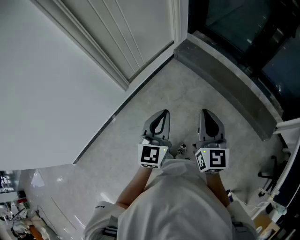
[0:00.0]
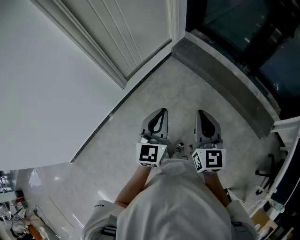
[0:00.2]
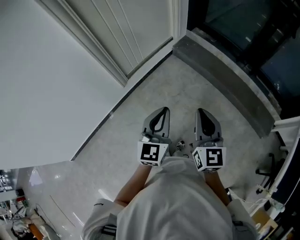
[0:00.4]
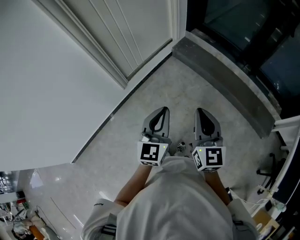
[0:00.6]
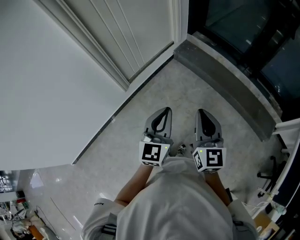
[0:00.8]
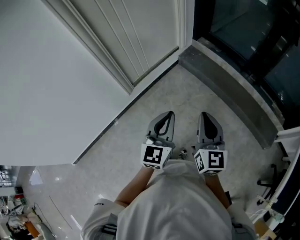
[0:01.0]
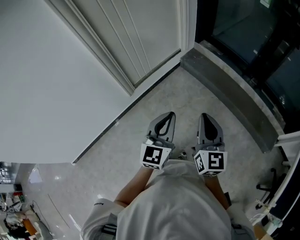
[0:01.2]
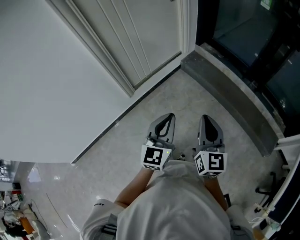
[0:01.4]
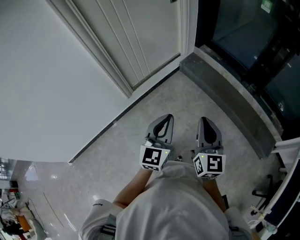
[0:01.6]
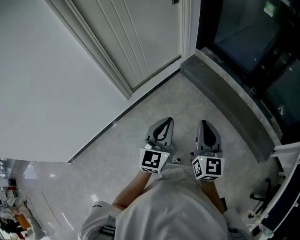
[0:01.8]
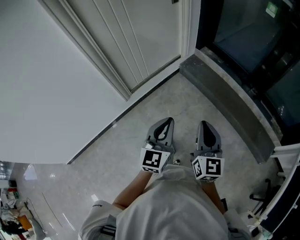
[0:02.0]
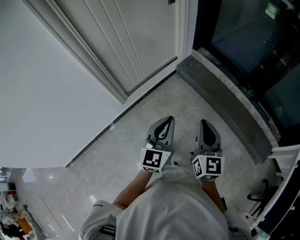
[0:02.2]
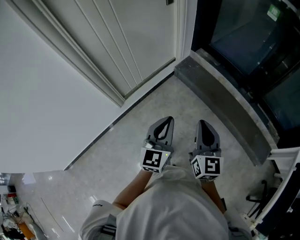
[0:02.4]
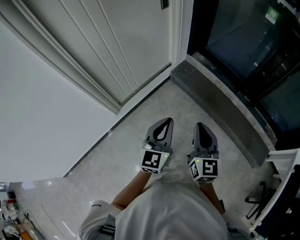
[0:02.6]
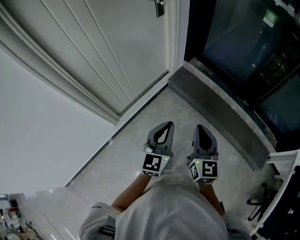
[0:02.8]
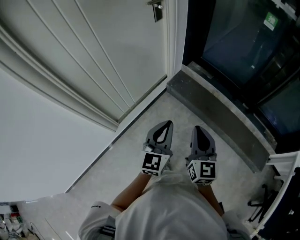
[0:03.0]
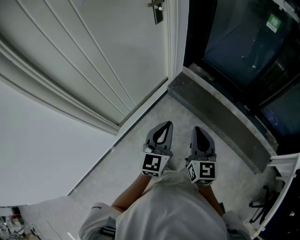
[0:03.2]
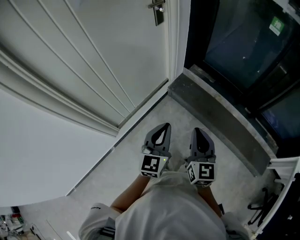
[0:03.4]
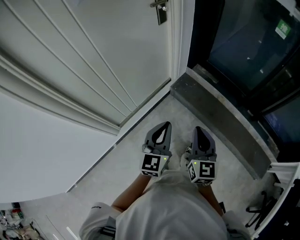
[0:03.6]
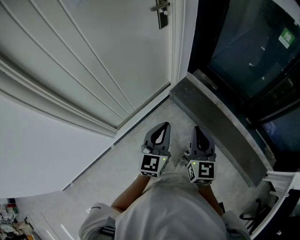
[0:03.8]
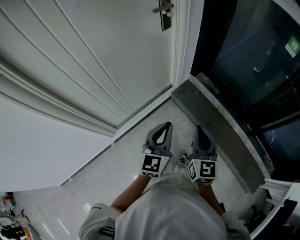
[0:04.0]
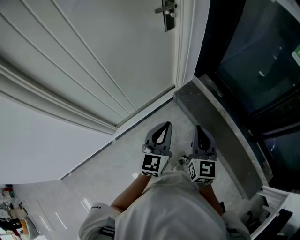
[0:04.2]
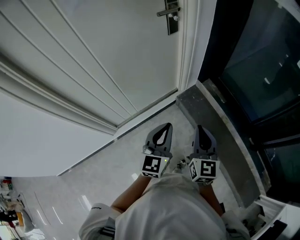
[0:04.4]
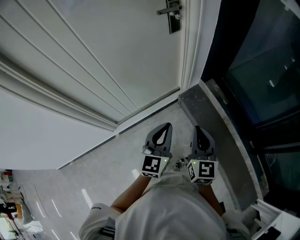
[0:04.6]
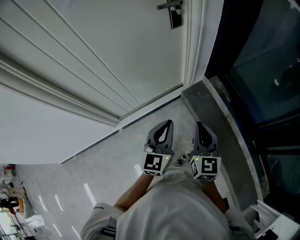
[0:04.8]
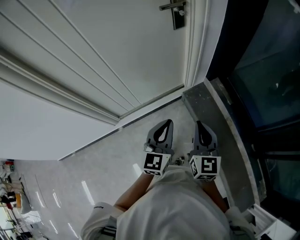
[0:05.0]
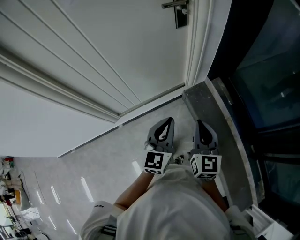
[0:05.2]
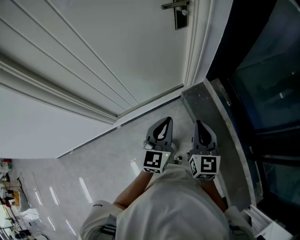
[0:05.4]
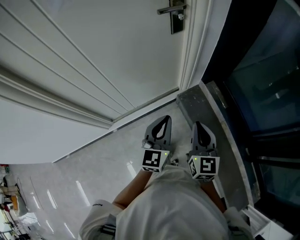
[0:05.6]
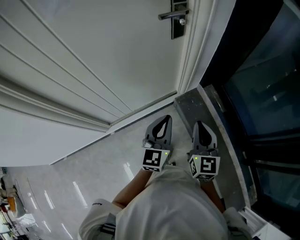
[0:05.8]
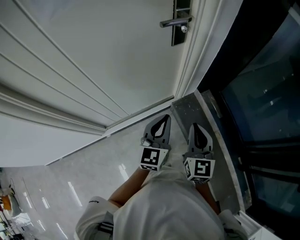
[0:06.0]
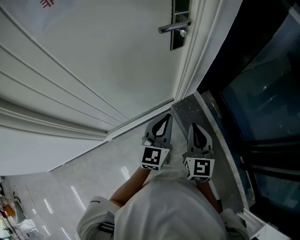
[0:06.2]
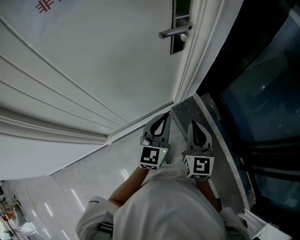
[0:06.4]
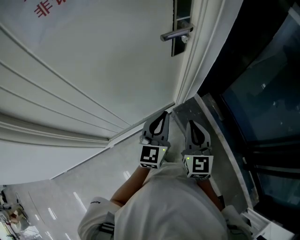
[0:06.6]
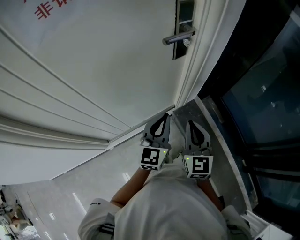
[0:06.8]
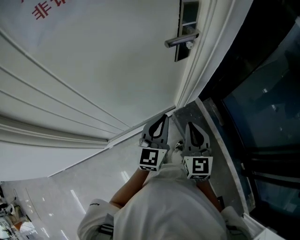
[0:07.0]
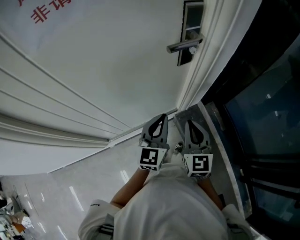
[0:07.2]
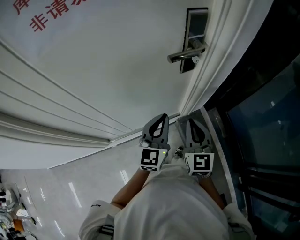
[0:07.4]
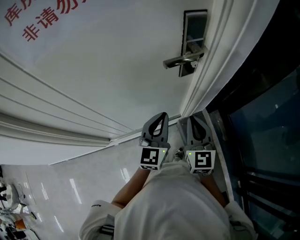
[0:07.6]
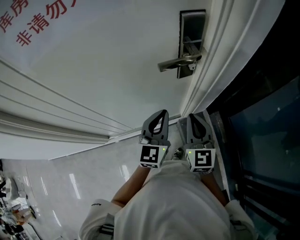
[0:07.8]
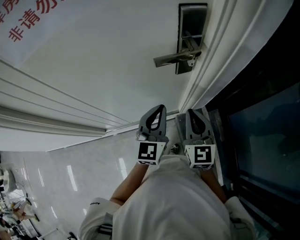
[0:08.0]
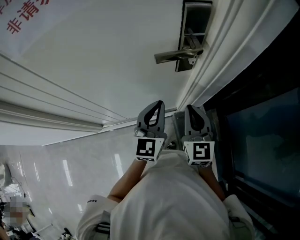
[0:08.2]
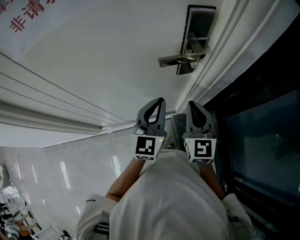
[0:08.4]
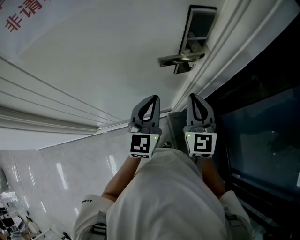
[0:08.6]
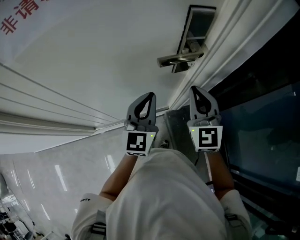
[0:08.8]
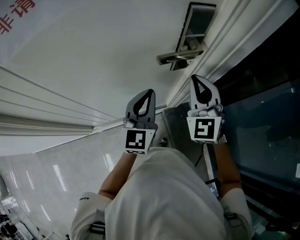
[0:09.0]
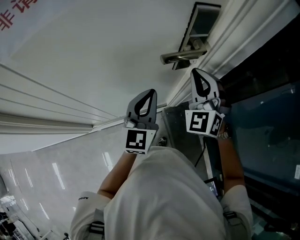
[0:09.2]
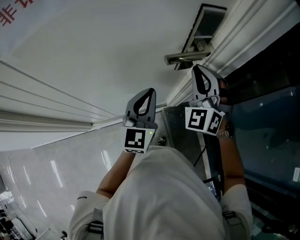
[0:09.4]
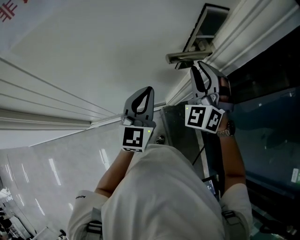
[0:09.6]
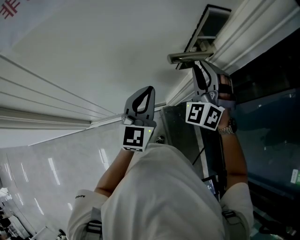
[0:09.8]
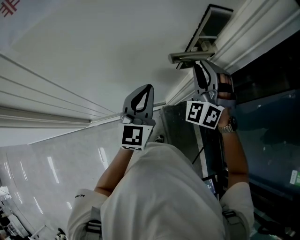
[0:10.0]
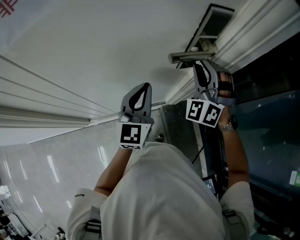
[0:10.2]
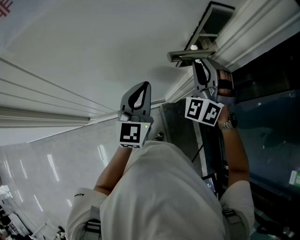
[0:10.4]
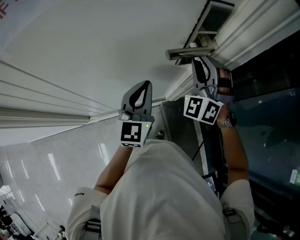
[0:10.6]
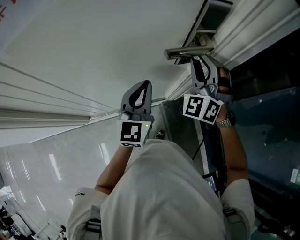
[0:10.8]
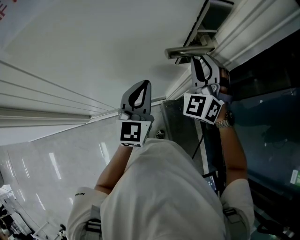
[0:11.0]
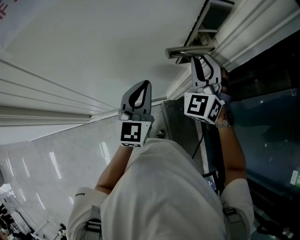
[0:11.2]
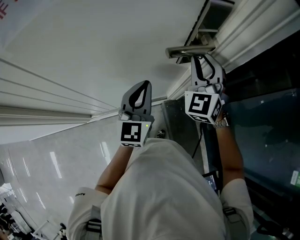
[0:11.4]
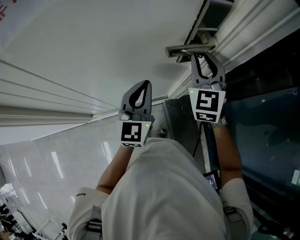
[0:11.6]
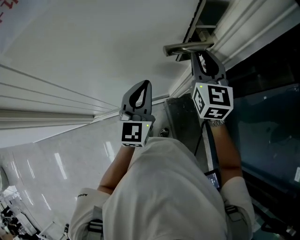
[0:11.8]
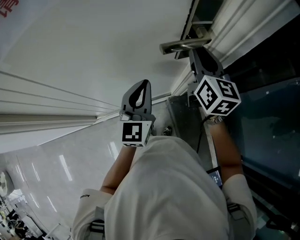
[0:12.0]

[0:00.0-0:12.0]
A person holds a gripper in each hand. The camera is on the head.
0:00.0 to 0:01.6: The grippers make only small movements.
0:01.6 to 0:03.0: Both grippers travel together forward, roughly 30 cm.
0:03.0 to 0:04.4: Both grippers travel together forward, some 20 cm.
0:04.4 to 0:06.0: The two grippers go about 15 cm forward.
0:06.0 to 0:07.6: Both grippers travel together forward, roughly 20 cm.
0:07.6 to 0:09.0: The right gripper moves forward and upward, approximately 15 cm, and changes its angle by approximately 30 degrees, while the left gripper travels forward by roughly 5 cm.
0:09.0 to 0:10.4: The right gripper goes roughly 5 cm forward, turns by some 40 degrees, and opens.
0:10.4 to 0:12.0: The right gripper rotates around the line of its fingers by about 90 degrees, clockwise from behind.

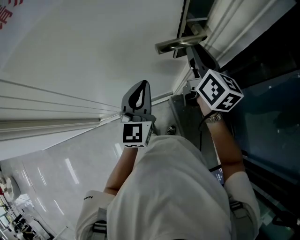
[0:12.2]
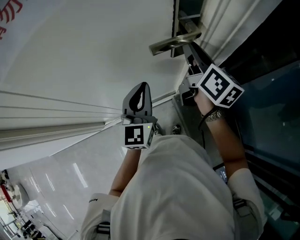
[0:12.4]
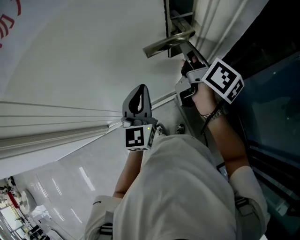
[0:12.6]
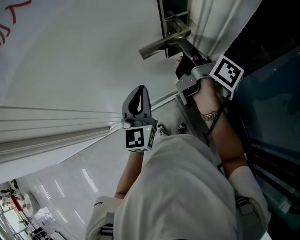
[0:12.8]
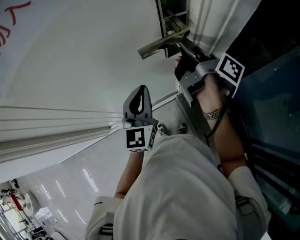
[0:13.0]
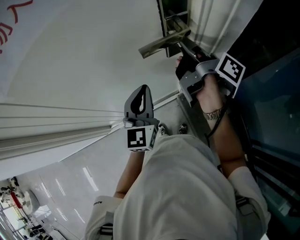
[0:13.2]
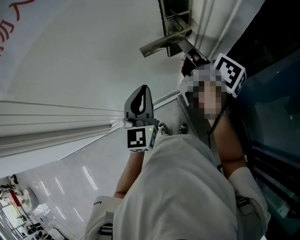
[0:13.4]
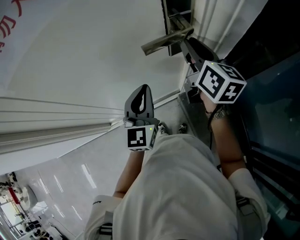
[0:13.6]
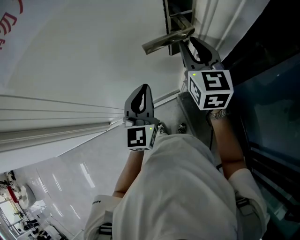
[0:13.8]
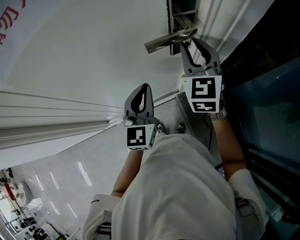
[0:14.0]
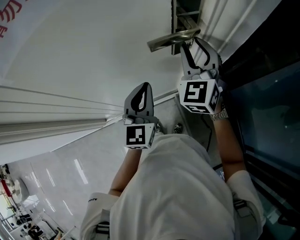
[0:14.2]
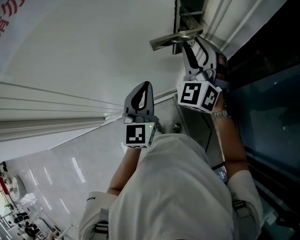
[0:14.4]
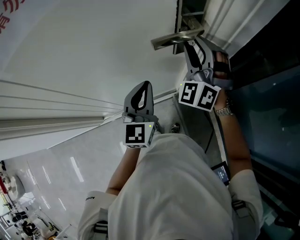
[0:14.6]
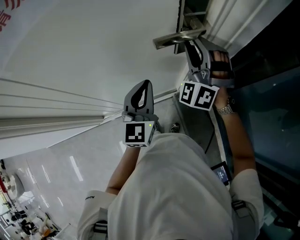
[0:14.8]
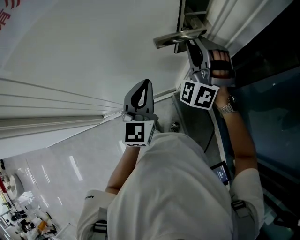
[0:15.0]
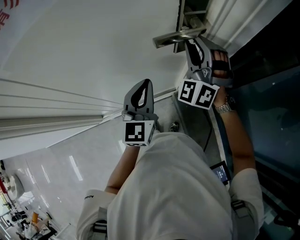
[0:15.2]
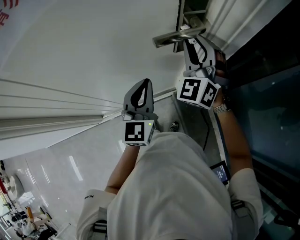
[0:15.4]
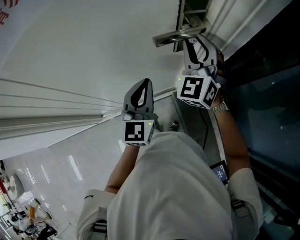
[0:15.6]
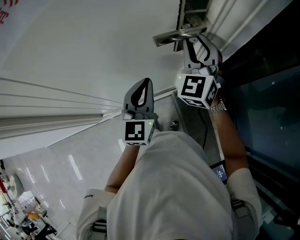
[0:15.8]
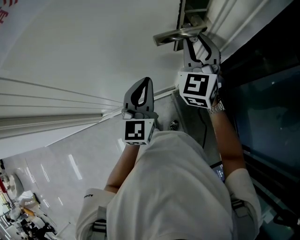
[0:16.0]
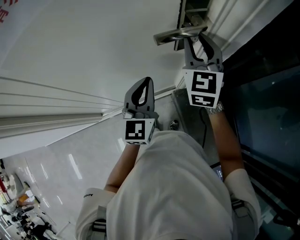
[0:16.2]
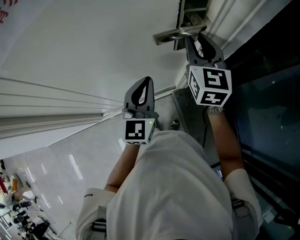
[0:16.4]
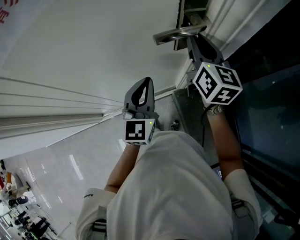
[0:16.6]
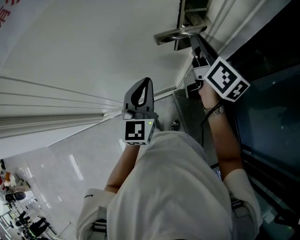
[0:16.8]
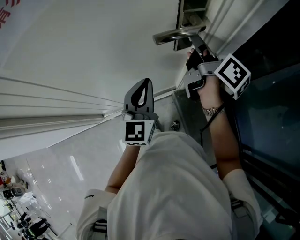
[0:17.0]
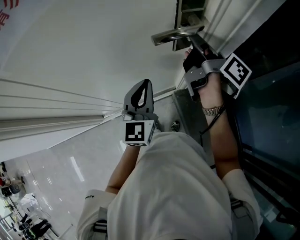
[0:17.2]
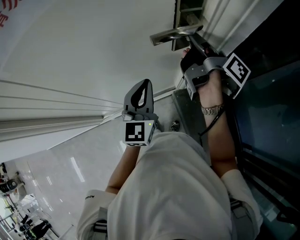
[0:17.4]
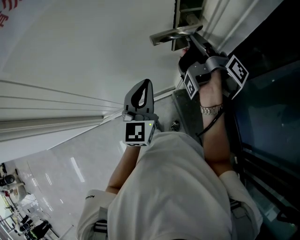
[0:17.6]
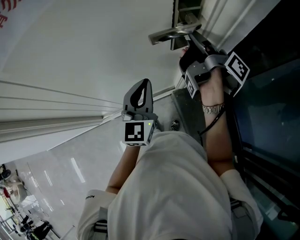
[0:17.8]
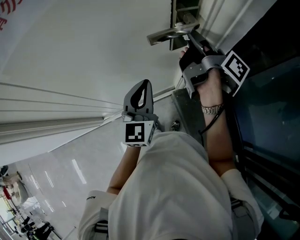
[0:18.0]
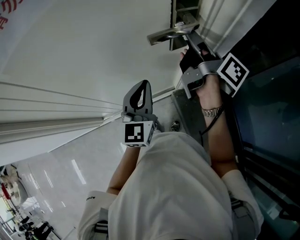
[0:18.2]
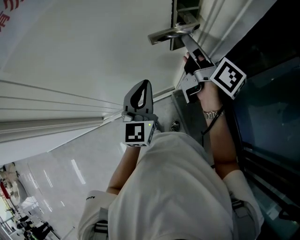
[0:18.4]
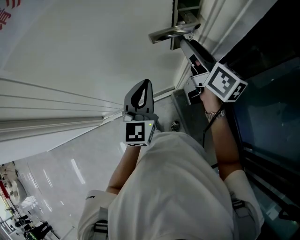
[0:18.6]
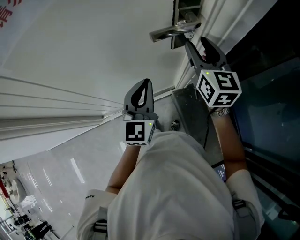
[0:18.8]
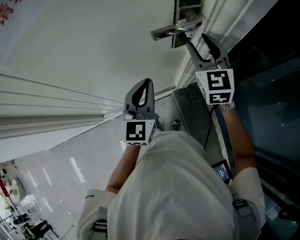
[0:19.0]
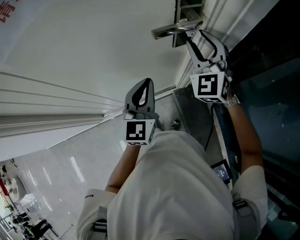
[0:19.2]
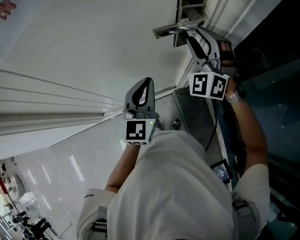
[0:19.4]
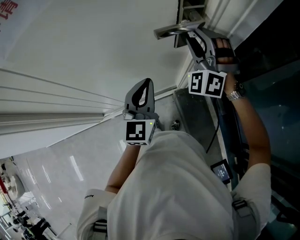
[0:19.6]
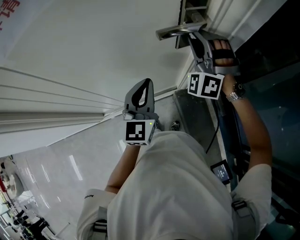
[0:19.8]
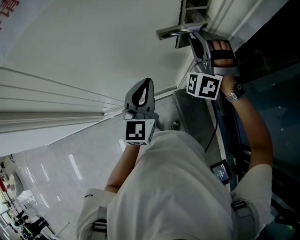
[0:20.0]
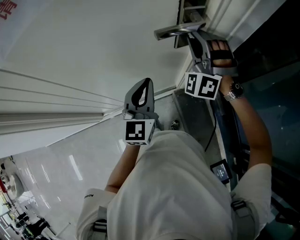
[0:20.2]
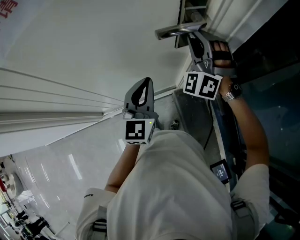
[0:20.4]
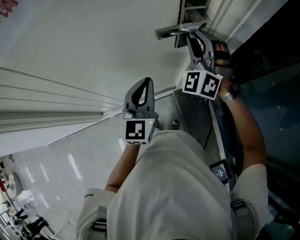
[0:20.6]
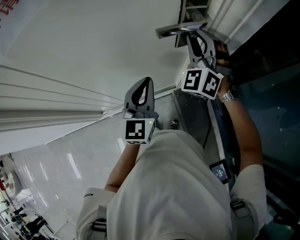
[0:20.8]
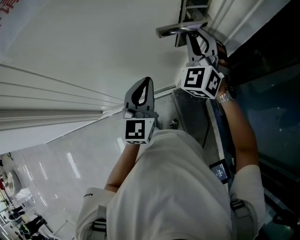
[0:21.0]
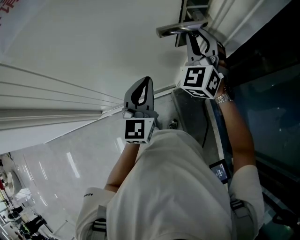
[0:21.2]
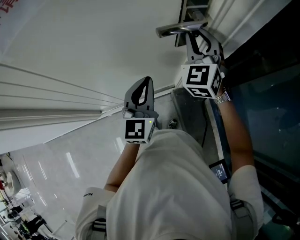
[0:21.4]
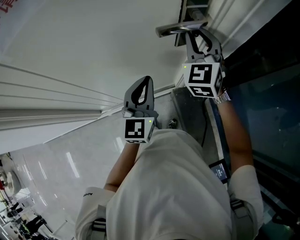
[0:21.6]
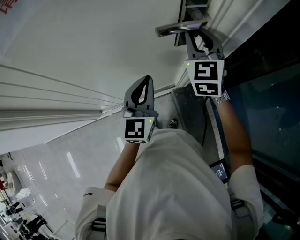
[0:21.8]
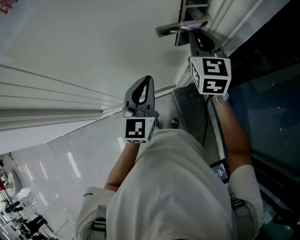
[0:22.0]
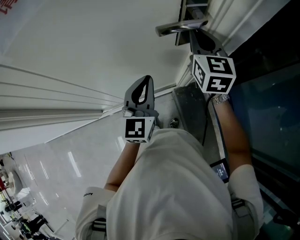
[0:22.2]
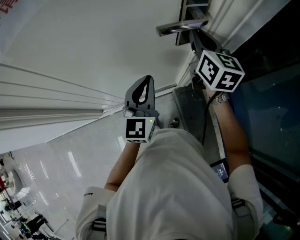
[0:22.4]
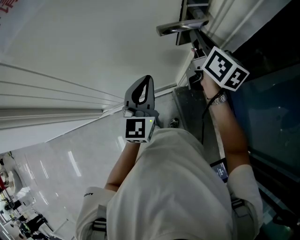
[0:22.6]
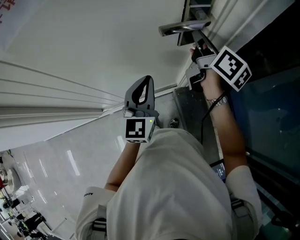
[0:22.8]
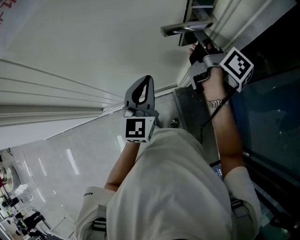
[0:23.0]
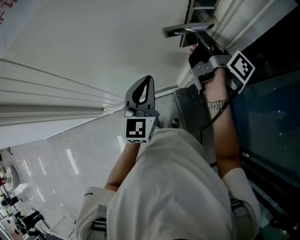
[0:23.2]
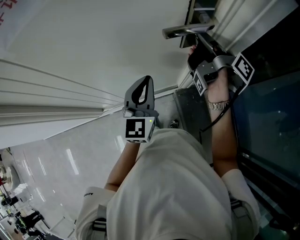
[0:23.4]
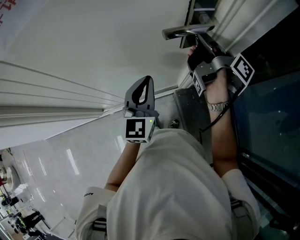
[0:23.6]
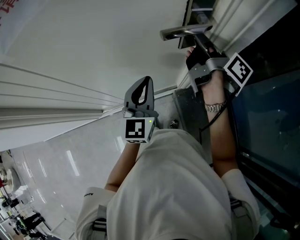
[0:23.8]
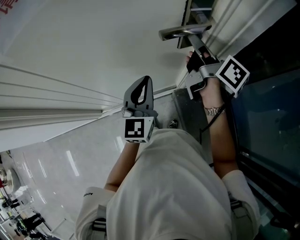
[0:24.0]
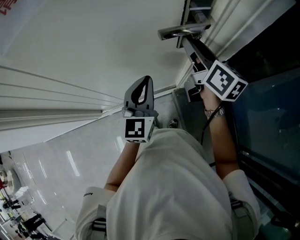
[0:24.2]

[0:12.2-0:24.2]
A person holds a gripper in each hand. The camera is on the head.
0:12.2 to 0:13.8: The right gripper turns by some 30 degrees.
0:13.8 to 0:15.2: The right gripper twists roughly 70 degrees counterclockwise, seen from behind.
0:15.2 to 0:16.6: The right gripper rolls clockwise, seen from behind, by roughly 80 degrees.
0:16.6 to 0:18.2: The right gripper rotates around the line of its fingers by about 60 degrees, clockwise from behind.
0:18.2 to 0:19.8: The right gripper rotates around the line of its fingers by about 150 degrees, counterclockwise from behind.
0:19.8 to 0:21.2: The right gripper turns by about 40 degrees.
0:21.2 to 0:22.6: The right gripper rolls clockwise, seen from behind, by about 80 degrees.
0:22.6 to 0:24.2: The right gripper opens its fingers.
